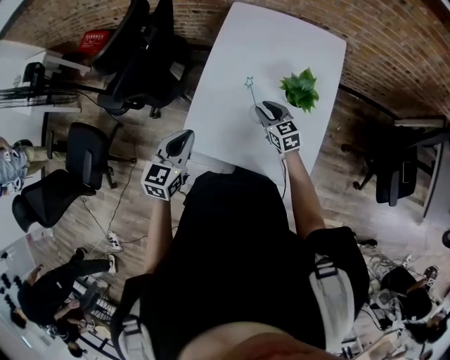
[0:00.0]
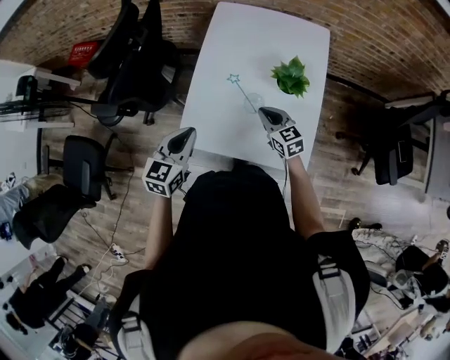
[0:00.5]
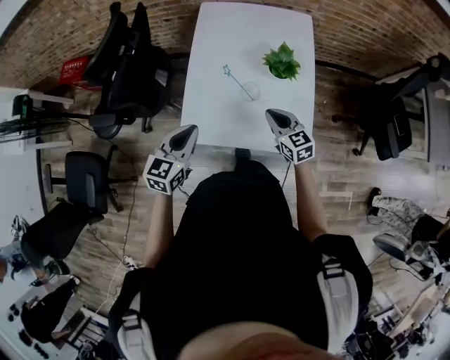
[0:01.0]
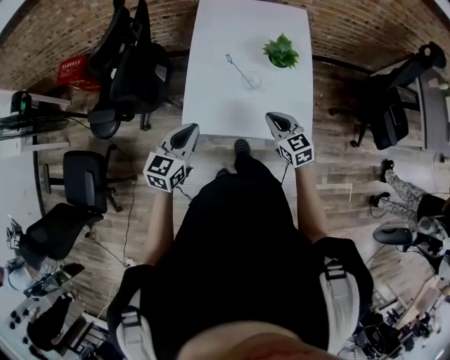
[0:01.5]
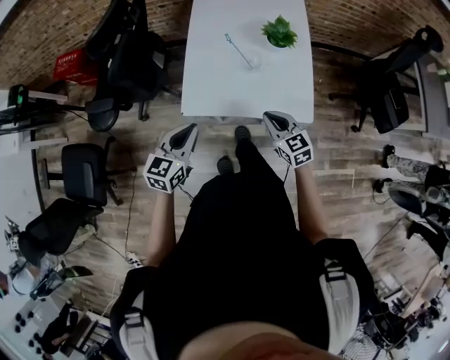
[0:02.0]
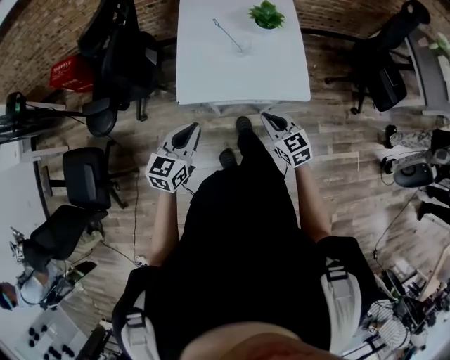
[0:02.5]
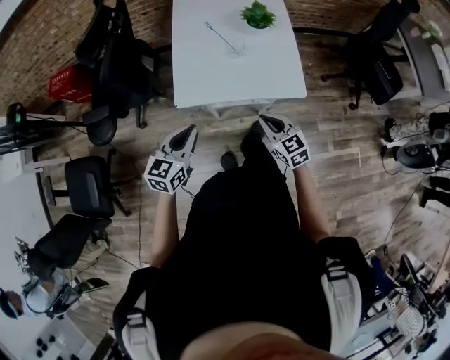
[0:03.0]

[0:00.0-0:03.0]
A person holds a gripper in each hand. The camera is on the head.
0:00.0 to 0:01.5: The left gripper heads backward, covering approximately 10 cm. Meanwhile the right gripper heads backward and upward, covering about 20 cm, and closes its fingers.
0:01.5 to 0:03.0: Both grippers travel together backward, about 15 cm.

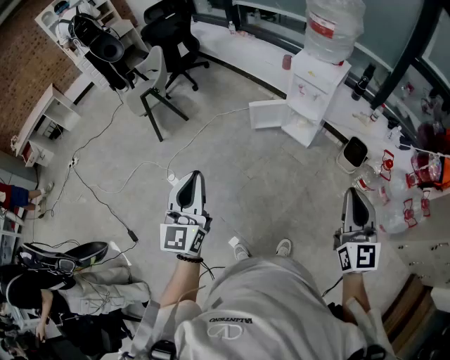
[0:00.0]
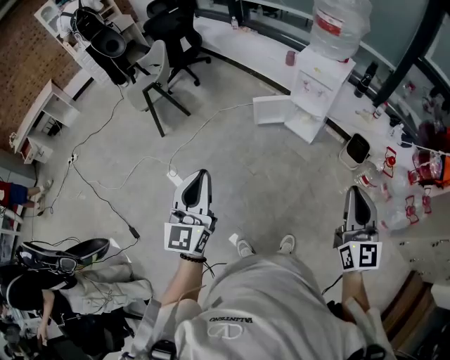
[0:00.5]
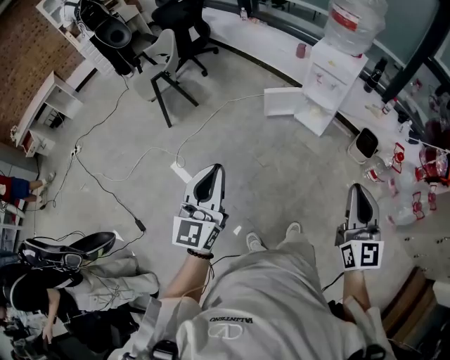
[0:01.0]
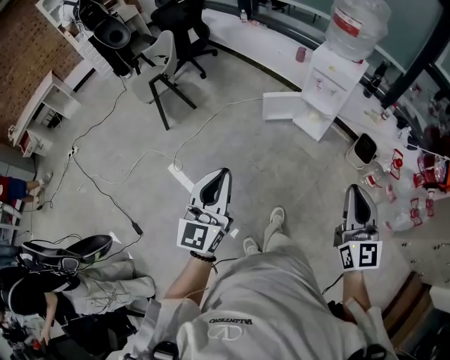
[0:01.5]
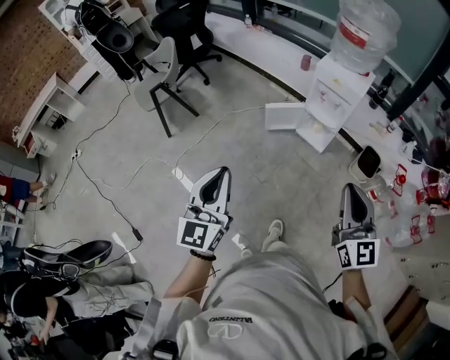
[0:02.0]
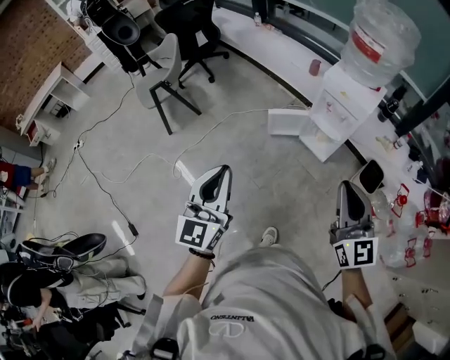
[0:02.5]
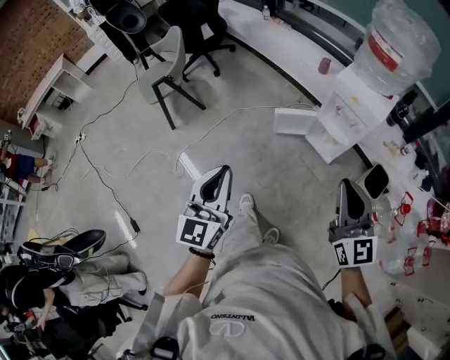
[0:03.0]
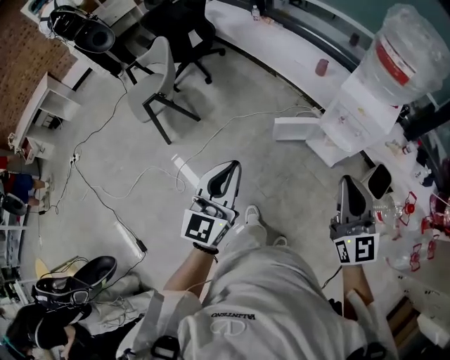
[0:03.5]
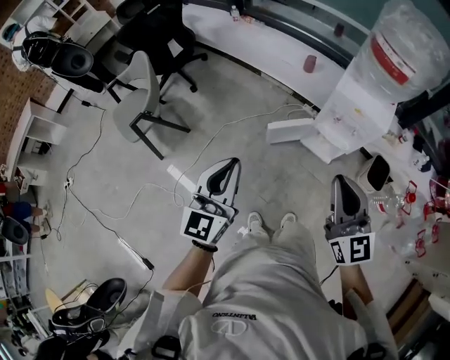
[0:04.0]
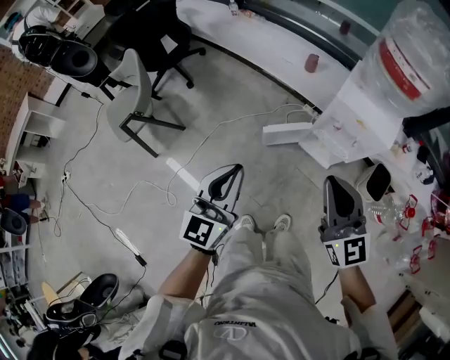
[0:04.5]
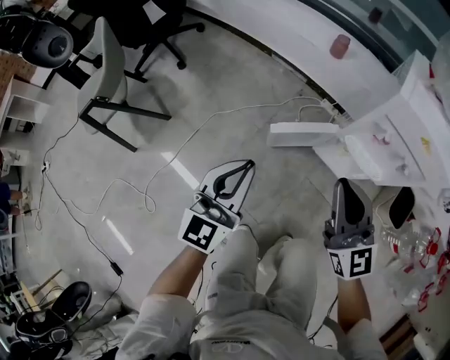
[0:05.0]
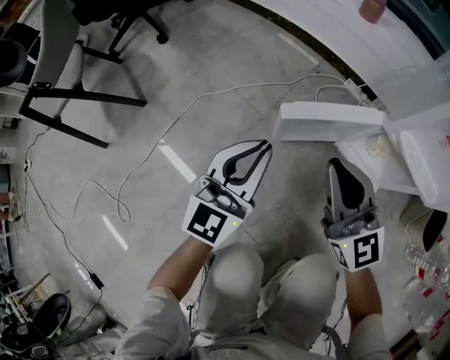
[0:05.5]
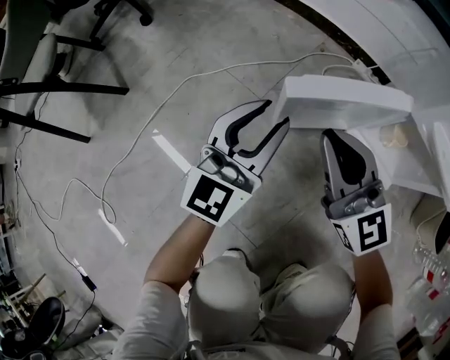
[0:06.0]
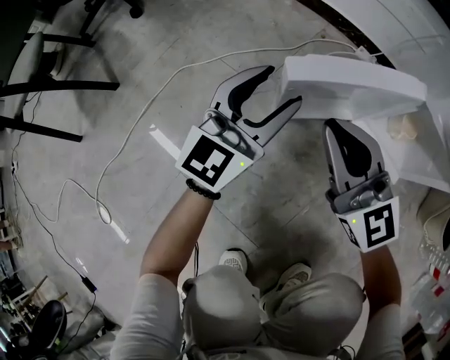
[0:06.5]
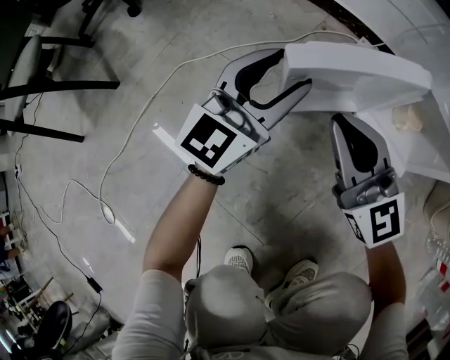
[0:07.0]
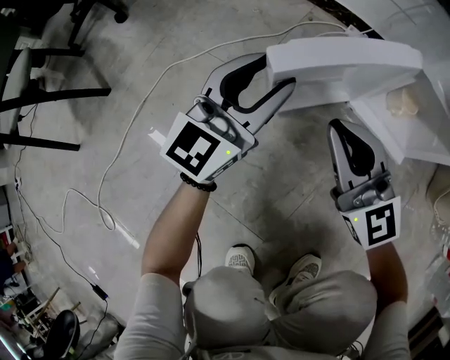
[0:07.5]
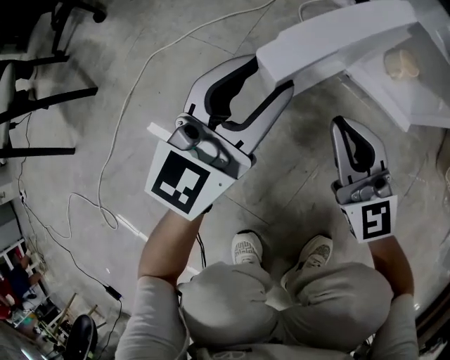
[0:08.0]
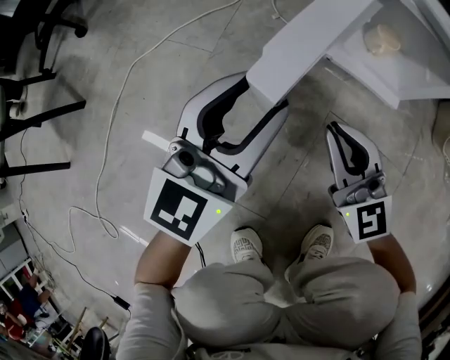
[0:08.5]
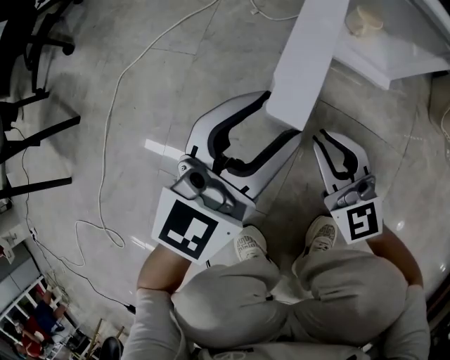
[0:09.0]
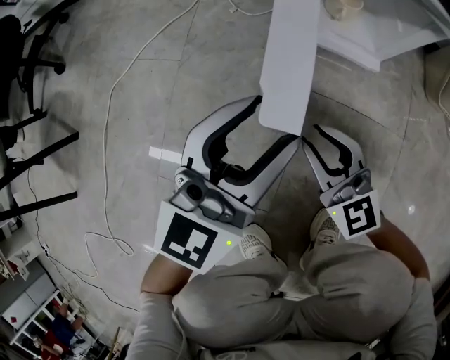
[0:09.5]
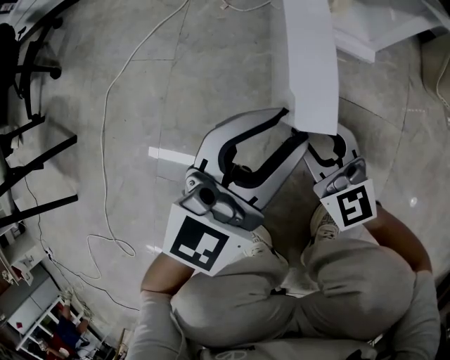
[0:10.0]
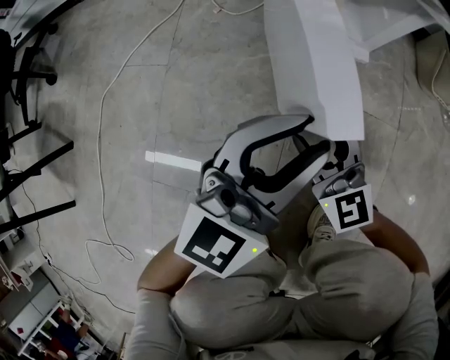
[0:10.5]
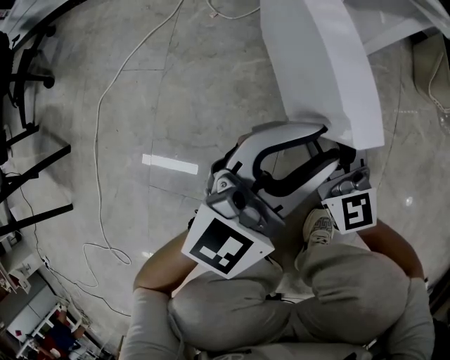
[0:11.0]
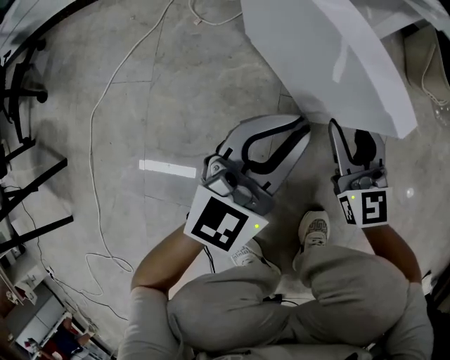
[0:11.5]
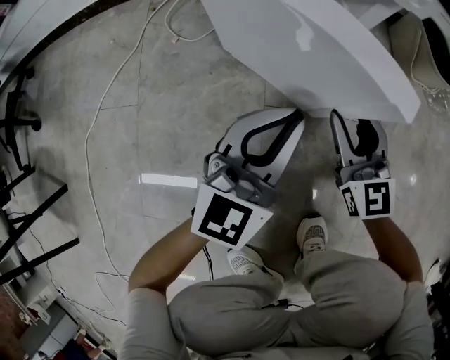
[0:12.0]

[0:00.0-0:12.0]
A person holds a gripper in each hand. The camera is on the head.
0:00.0 to 0:02.0: The left gripper goes approximately 10 cm forward; the right gripper heads forward and to the left, covering some 15 cm.
0:02.0 to 0:04.0: The two grippers go approximately 35 cm forward.
0:04.0 to 0:06.0: Both grippers travel together downward and forward, roughly 80 cm. The left gripper opens up.
0:06.0 to 0:08.0: The left gripper is displaced to the right by about 5 cm, while the right gripper is displaced downward, to the right and backward by about 15 cm.
0:08.0 to 0:10.0: The left gripper moves to the right and backward, approximately 20 cm. The right gripper is displaced backward, to the right and downward by roughly 10 cm, and opens.
0:10.0 to 0:12.0: The left gripper is displaced forward, to the right and downward by roughly 15 cm, and closes its fingers. The right gripper is displaced to the right and forward by about 20 cm, and changes its angle by some 30 degrees.

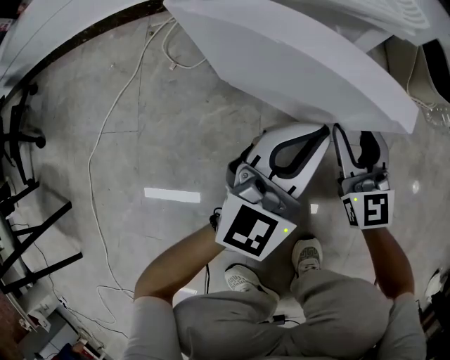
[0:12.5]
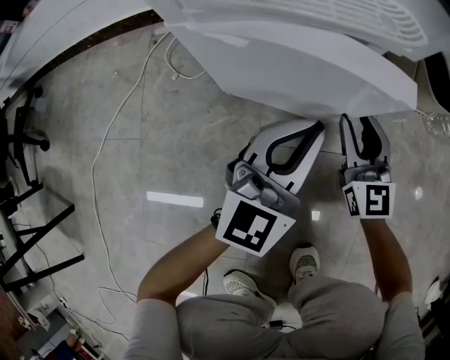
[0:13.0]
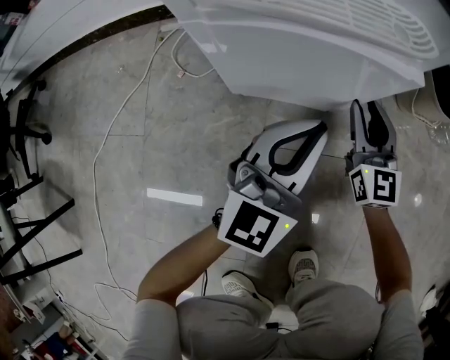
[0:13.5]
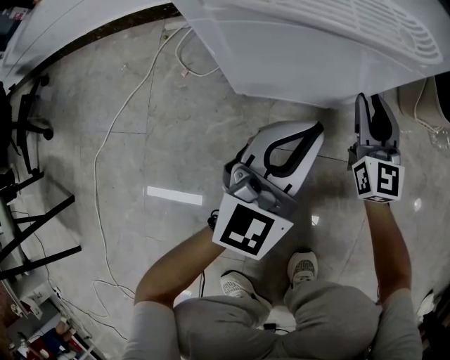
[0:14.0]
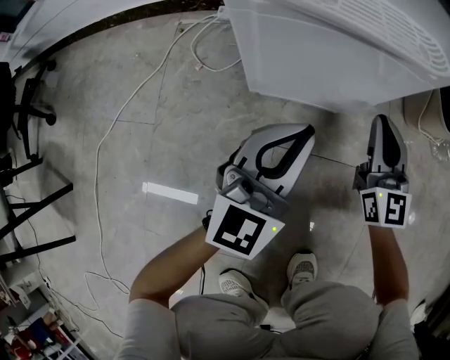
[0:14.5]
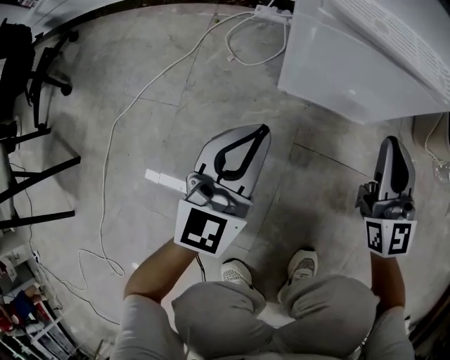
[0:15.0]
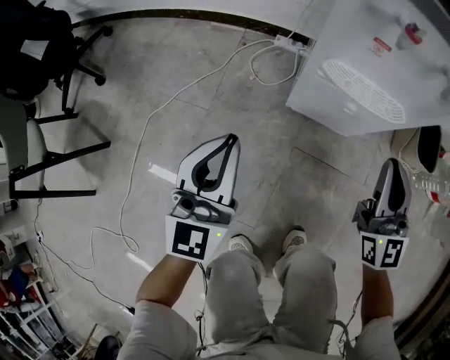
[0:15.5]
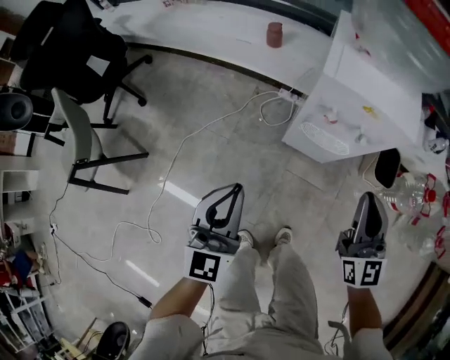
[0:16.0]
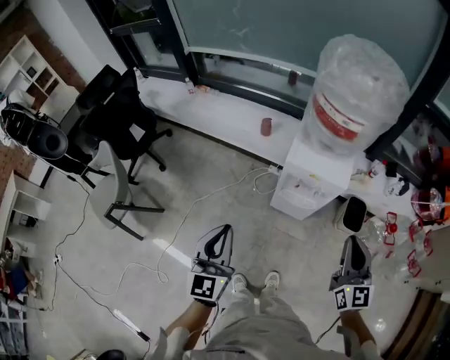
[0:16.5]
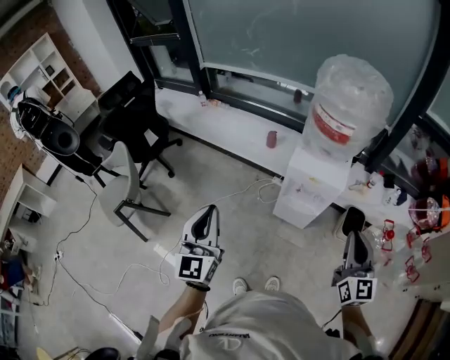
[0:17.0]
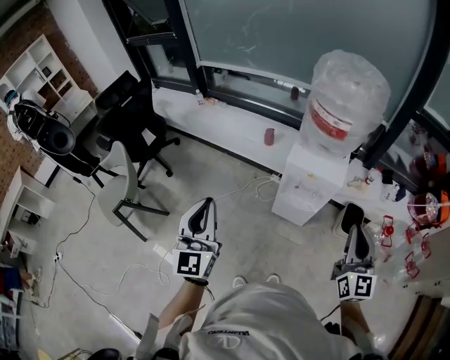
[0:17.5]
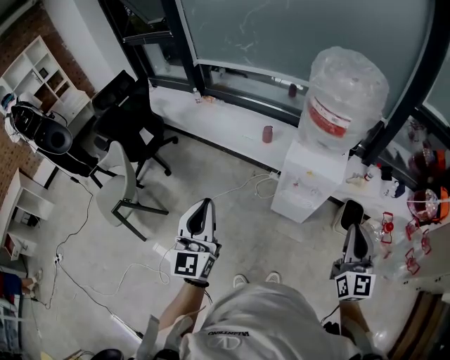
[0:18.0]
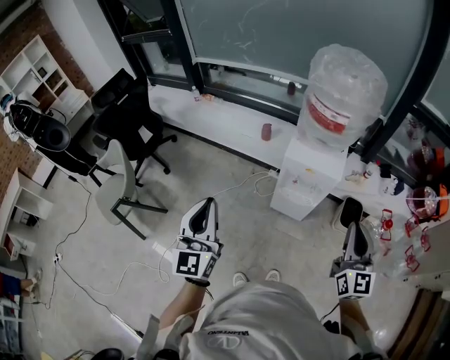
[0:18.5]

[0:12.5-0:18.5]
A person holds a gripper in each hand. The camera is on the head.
0:12.5 to 0:14.5: The right gripper heads forward, covering roughly 5 cm, and closes up. Meanwhile the left gripper moves to the left, about 5 cm.
0:14.5 to 0:16.5: Both grippers travel together upward, approximately 80 cm. The left gripper rotates some 40 degrees.
0:16.5 to 0:18.5: The left gripper is displaced upward and to the left by roughly 10 cm, while the right gripper moves upward and backward, about 10 cm.

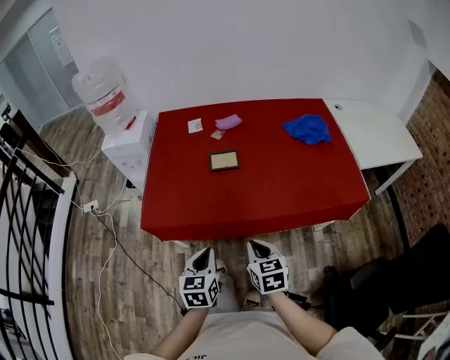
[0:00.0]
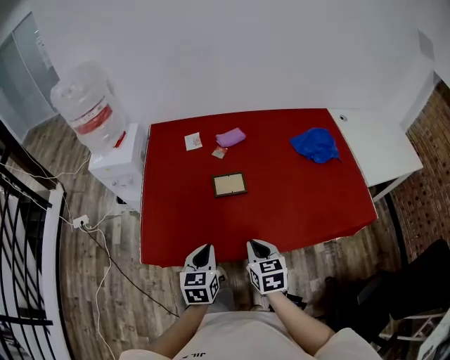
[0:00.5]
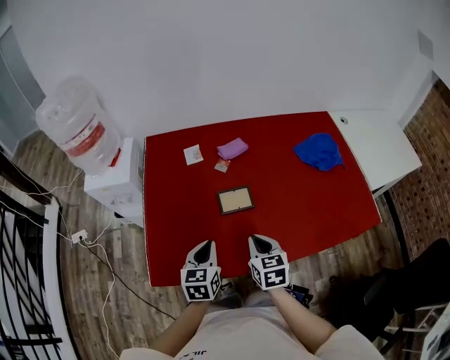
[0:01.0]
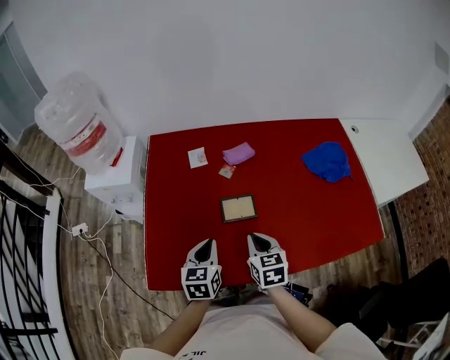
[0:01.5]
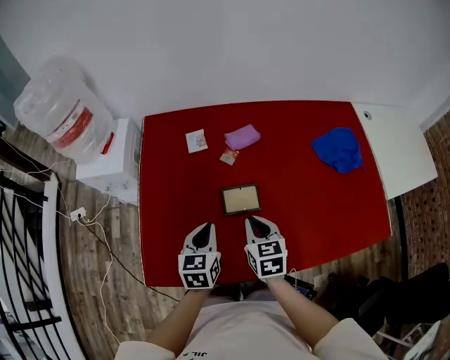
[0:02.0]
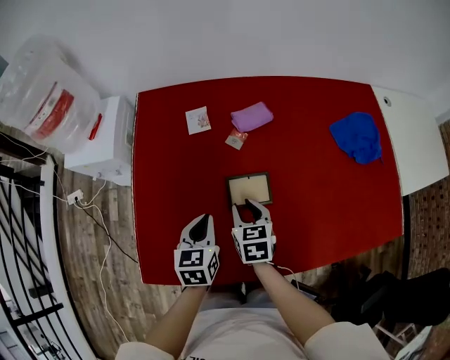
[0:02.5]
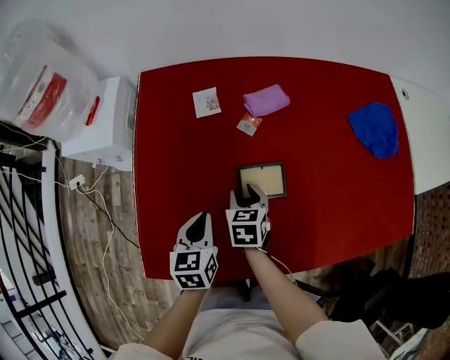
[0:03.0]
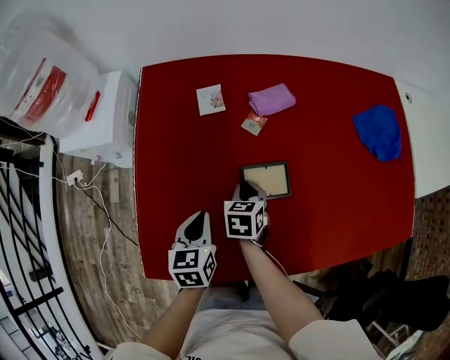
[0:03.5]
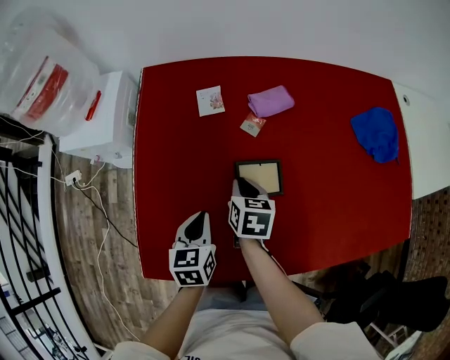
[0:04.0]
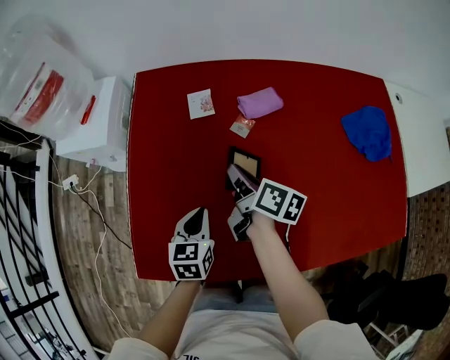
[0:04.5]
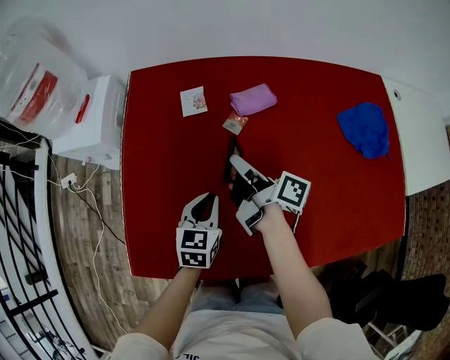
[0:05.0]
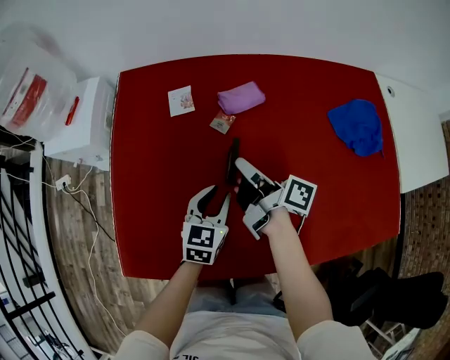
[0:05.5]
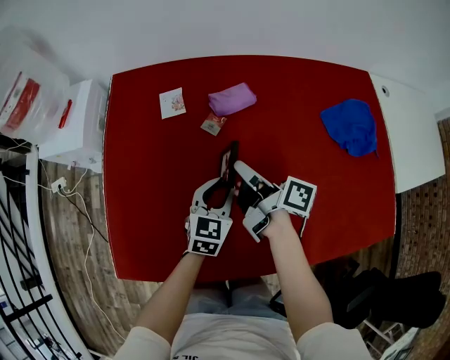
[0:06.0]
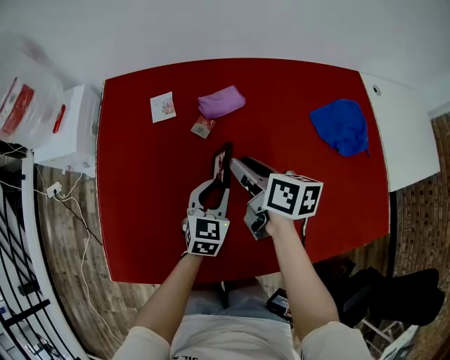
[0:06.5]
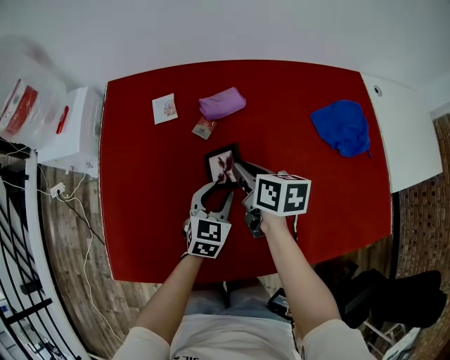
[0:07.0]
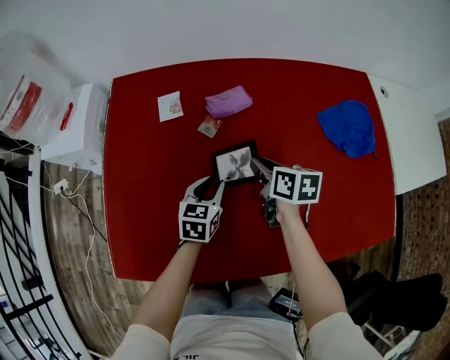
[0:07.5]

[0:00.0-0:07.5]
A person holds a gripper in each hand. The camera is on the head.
0:00.0 to 0:02.0: Both grippers move forward, about 35 cm.
0:02.0 to 0:04.0: The right gripper moves downward, forward and to the left, approximately 20 cm, and opens, then closes again; the left gripper shifts some 10 cm downward and to the left.
0:04.0 to 0:05.5: The left gripper goes approximately 15 cm to the right, changes its angle by roughly 20 degrees, and opens up. The right gripper travels to the right and upward by some 10 cm, and points its fingers about 40 degrees further upward.
0:05.5 to 0:07.5: The left gripper changes place by about 5 cm, while the right gripper is displaced to the right and downward by approximately 10 cm, and tilts its fingers roughly 30 degrees downward.
